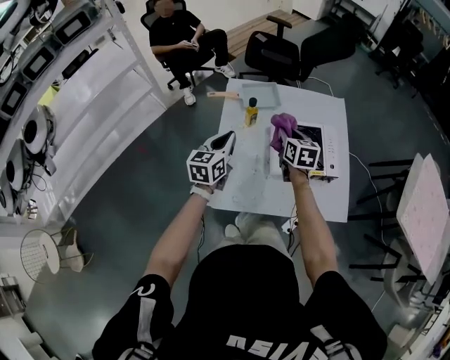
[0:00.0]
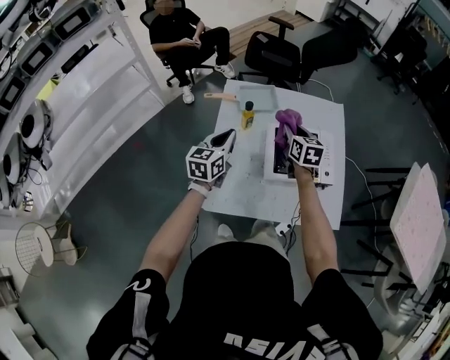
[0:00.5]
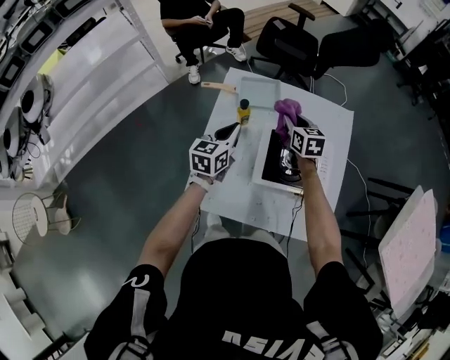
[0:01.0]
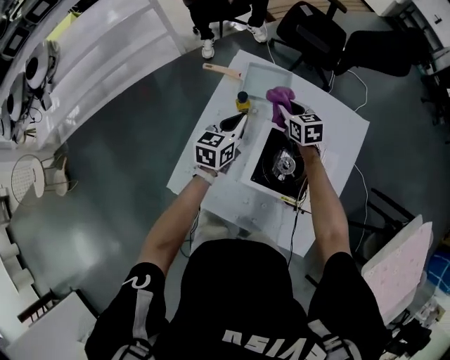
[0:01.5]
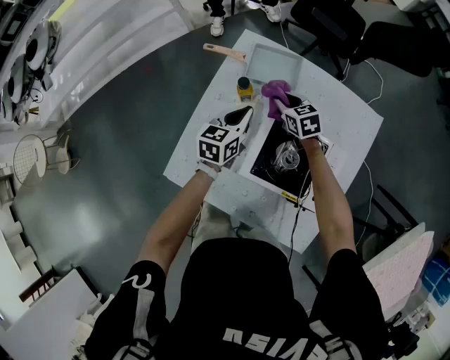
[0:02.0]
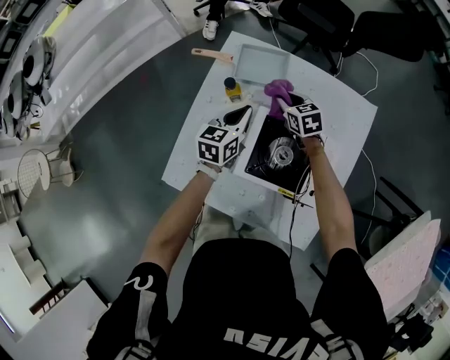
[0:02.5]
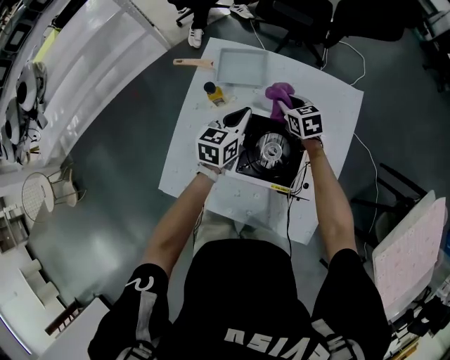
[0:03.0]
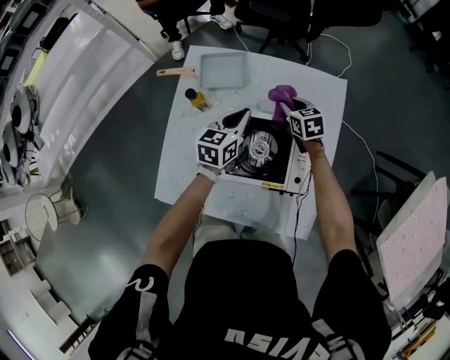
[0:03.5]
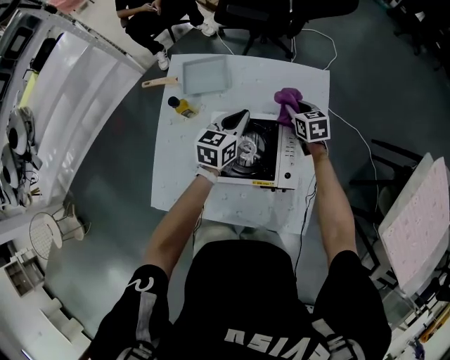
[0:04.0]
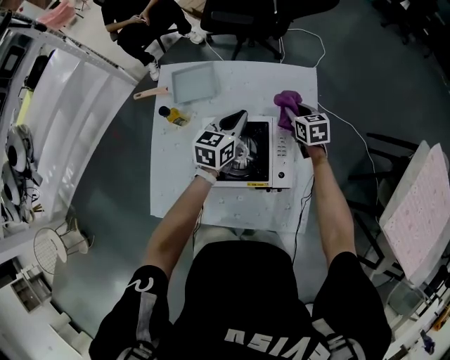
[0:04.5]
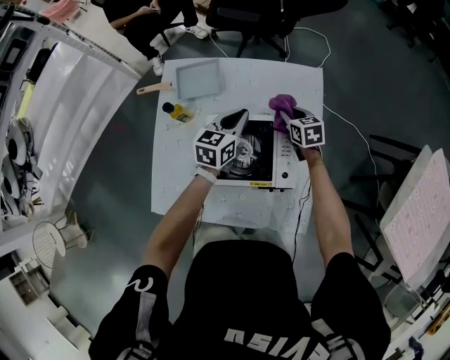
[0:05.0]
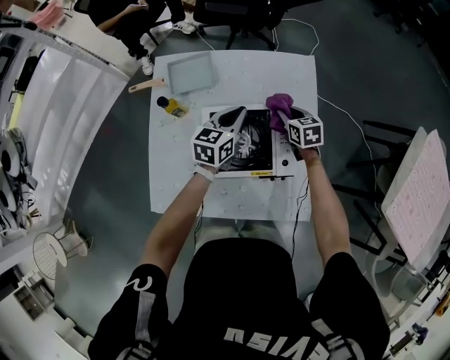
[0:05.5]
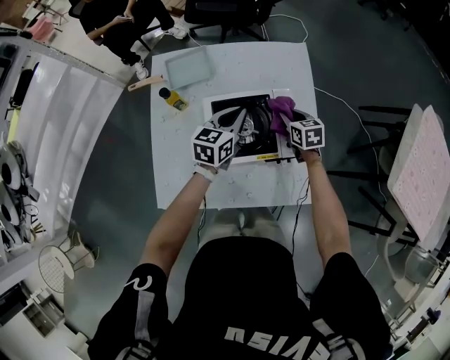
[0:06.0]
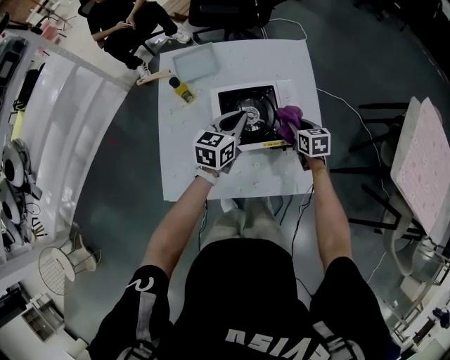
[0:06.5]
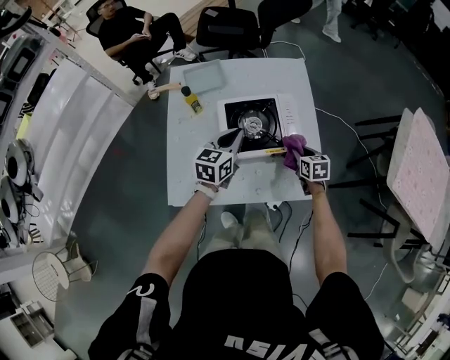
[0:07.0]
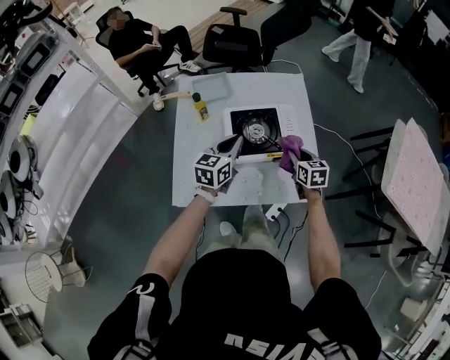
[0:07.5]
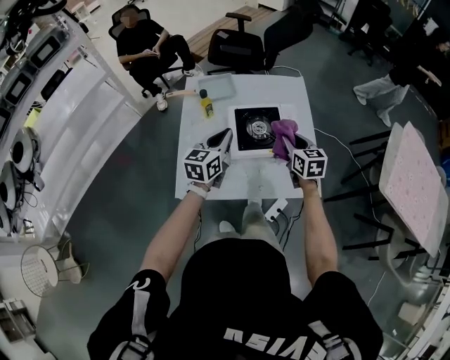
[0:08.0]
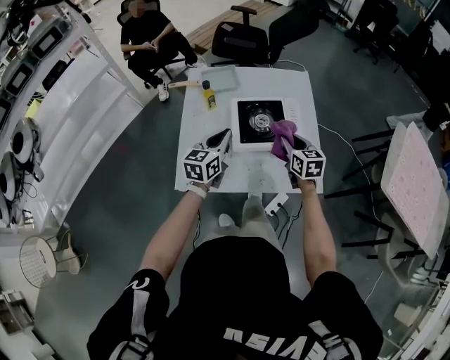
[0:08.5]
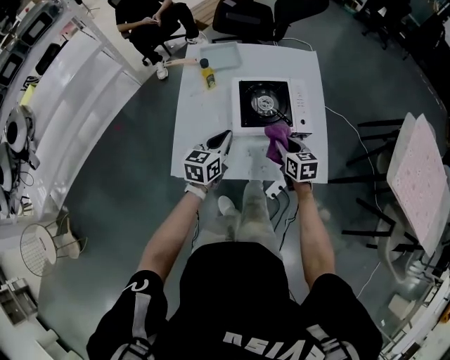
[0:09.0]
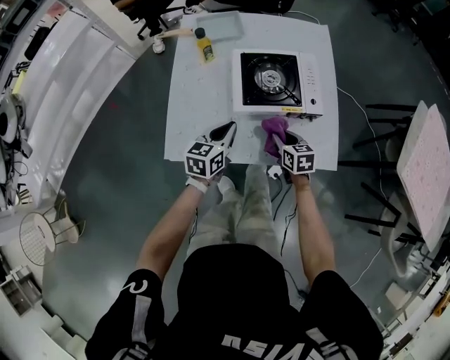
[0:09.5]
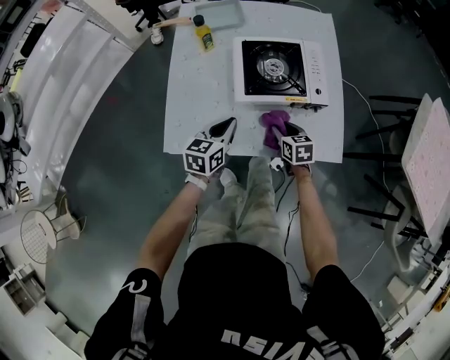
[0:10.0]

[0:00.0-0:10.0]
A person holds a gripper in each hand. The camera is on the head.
0:00.0 to 0:02.0: The right gripper shifts by roughly 25 cm, and turns by approximately 50 degrees. Meanwhile the left gripper shifts by roughly 25 cm.
0:02.0 to 0:04.0: The two grippers go approximately 25 cm to the right. The right gripper turns by approximately 30 degrees.
0:04.0 to 0:06.0: The left gripper heads backward, covering some 5 cm, while the right gripper moves backward, roughly 15 cm.
0:06.0 to 0:08.0: The right gripper travels backward and upward by about 25 cm. The left gripper heads backward, upward and to the left, covering about 25 cm.
0:08.0 to 0:10.0: Both grippers move downward, approximately 25 cm. The right gripper rotates approximately 20 degrees.

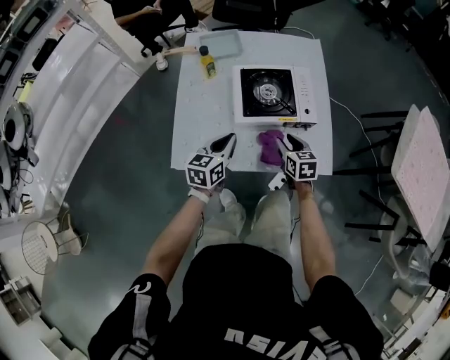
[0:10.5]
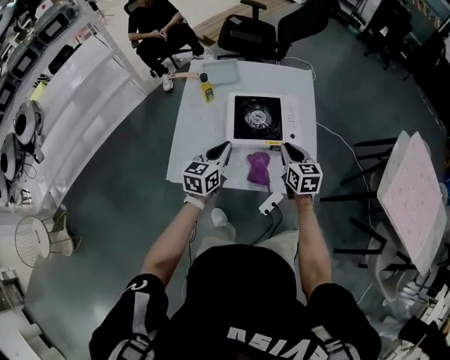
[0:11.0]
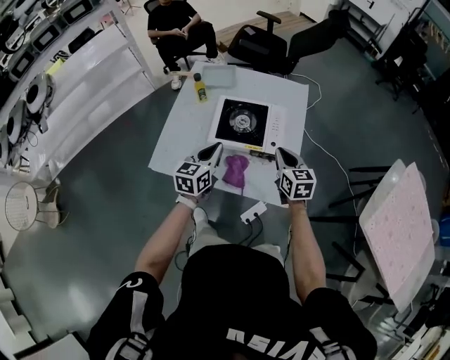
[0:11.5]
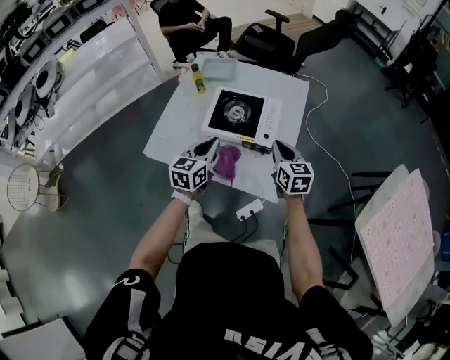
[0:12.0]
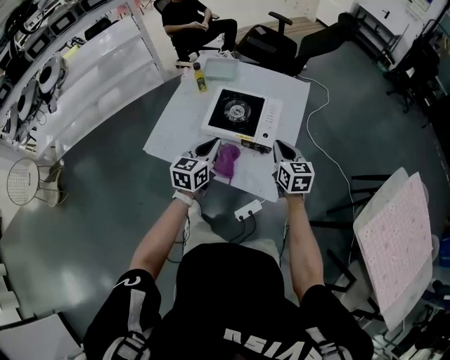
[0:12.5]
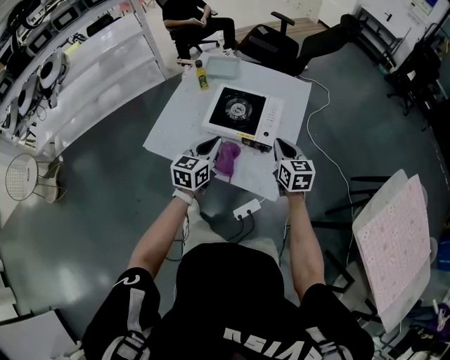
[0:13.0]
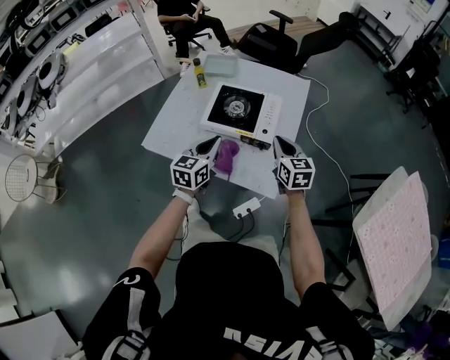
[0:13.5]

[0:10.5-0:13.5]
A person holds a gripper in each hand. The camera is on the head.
0:10.5 to 0:12.0: The grippers both shift to the right and upward by approximately 20 cm. The right gripper rotates about 20 degrees, and closes; the left gripper rotates about 20 degrees.
0:12.0 to 0:13.5: The grippers make only small movements.

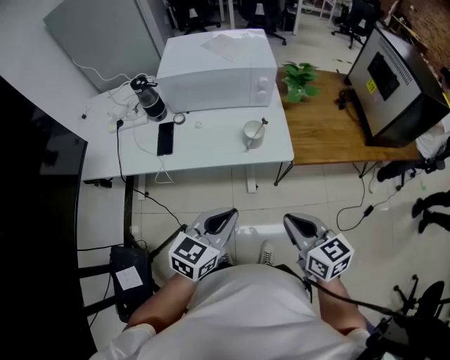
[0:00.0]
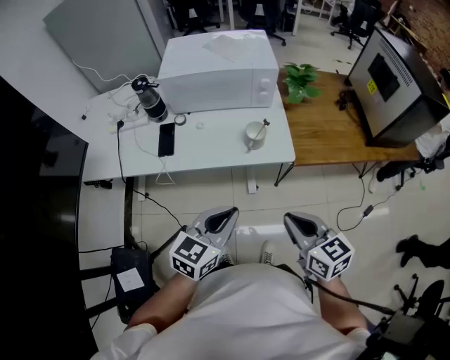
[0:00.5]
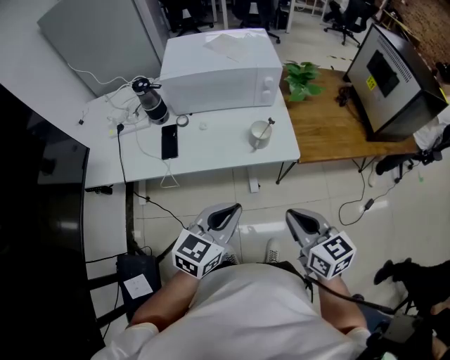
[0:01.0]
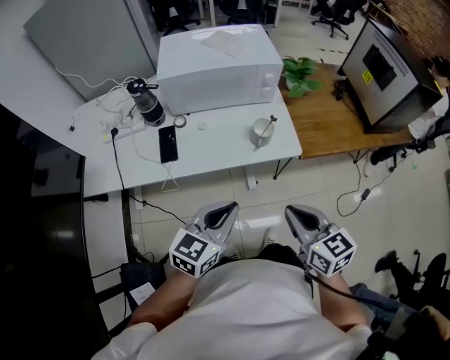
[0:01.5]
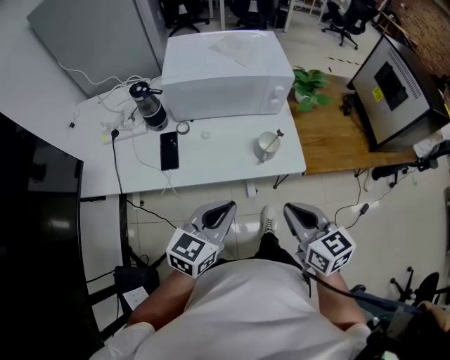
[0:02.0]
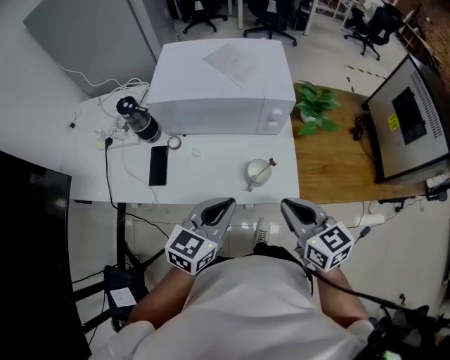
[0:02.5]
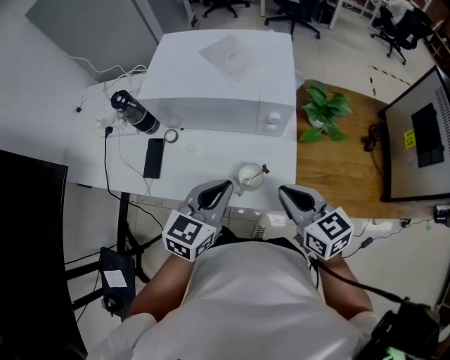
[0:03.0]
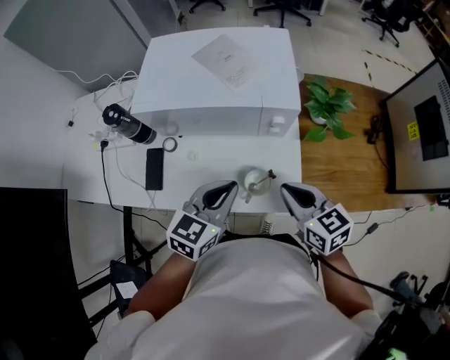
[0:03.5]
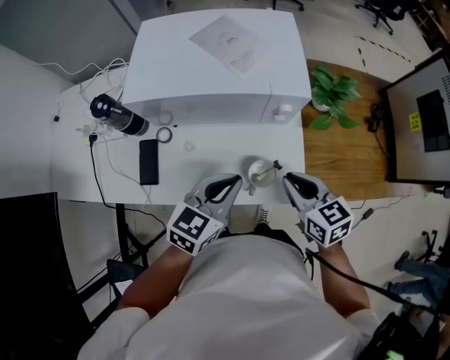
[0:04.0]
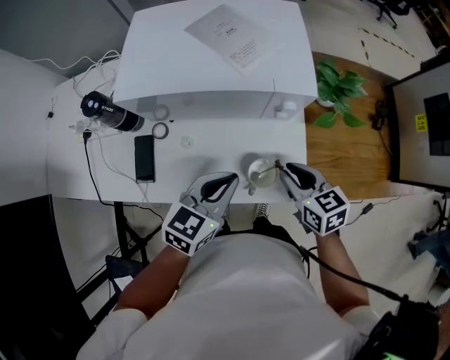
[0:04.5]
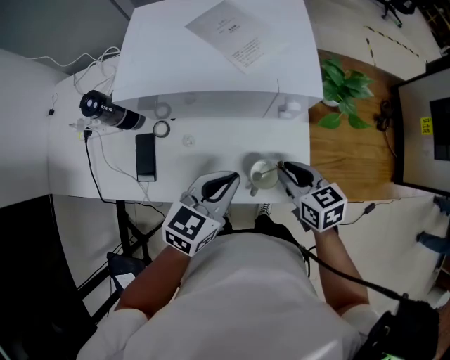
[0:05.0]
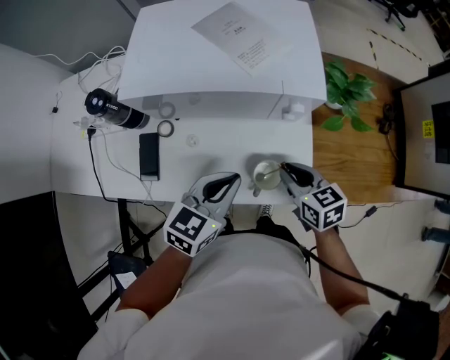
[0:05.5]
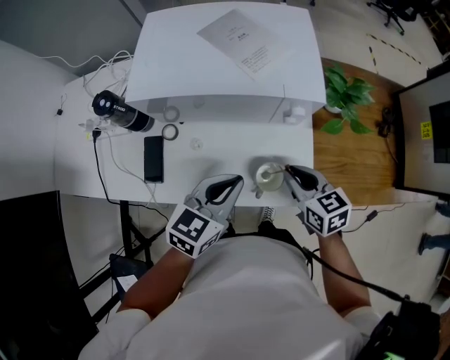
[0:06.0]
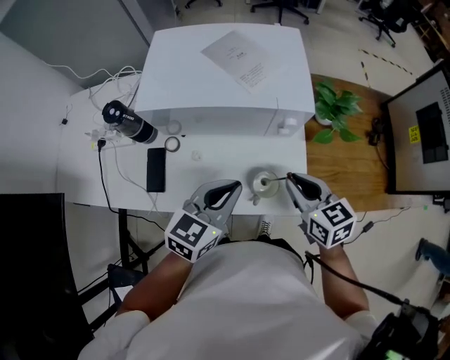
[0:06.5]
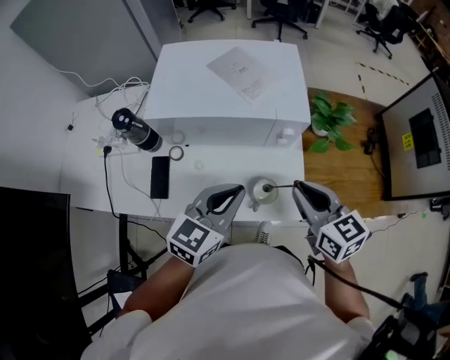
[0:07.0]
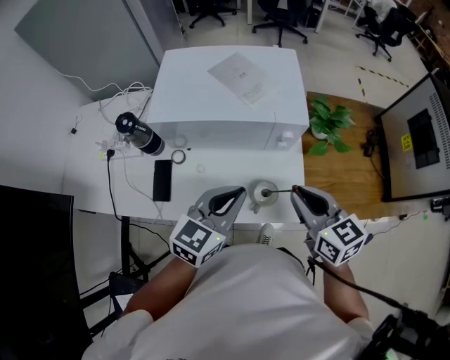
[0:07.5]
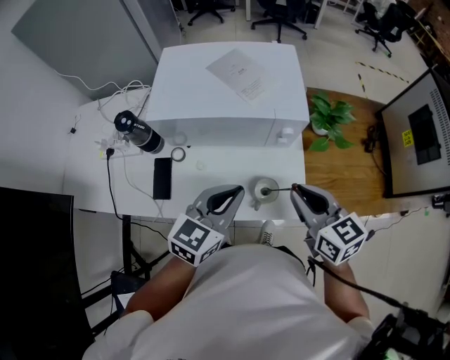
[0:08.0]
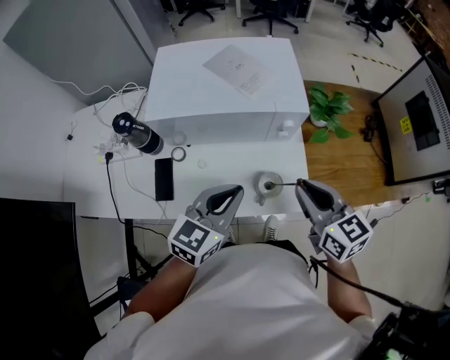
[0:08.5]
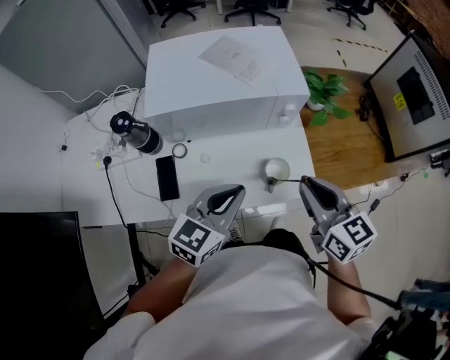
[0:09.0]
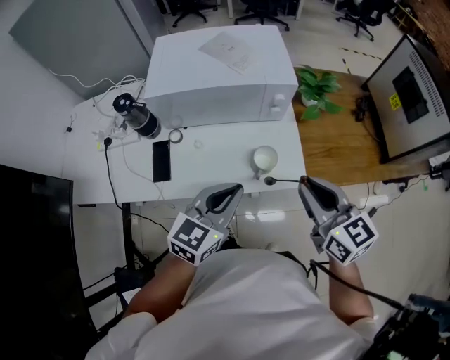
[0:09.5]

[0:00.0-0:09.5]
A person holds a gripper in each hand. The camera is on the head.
0:00.0 to 0:02.0: The right gripper travels forward and to the left by some 10 cm, while the left gripper goes about 10 cm to the left and forward.
0:02.0 to 0:04.0: The right gripper moves forward, approximately 25 cm, while the left gripper heads forward and to the right, covering roughly 25 cm.
0:04.0 to 0:05.5: The right gripper is displaced downward by approximately 5 cm.
0:05.5 to 0:07.5: The right gripper heads upward, covering roughly 15 cm. The left gripper shifts some 10 cm upward.
0:07.5 to 0:09.5: Both grippers move backward, approximately 10 cm.

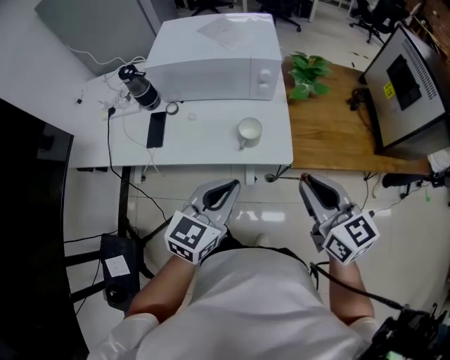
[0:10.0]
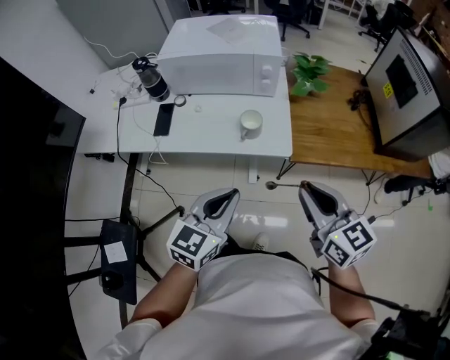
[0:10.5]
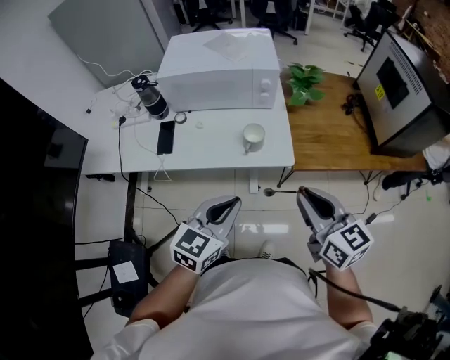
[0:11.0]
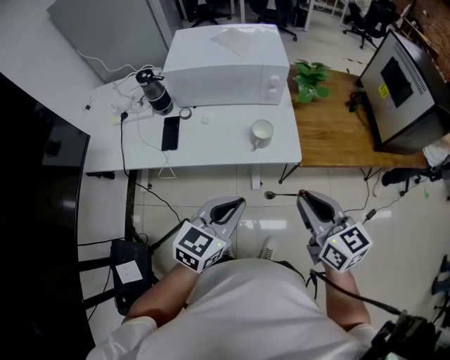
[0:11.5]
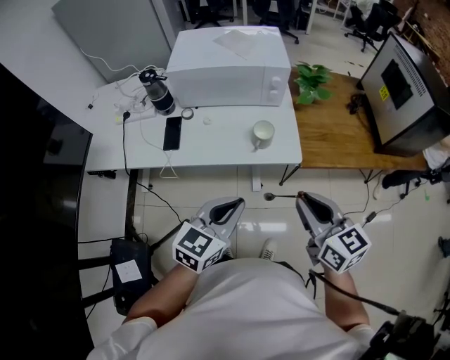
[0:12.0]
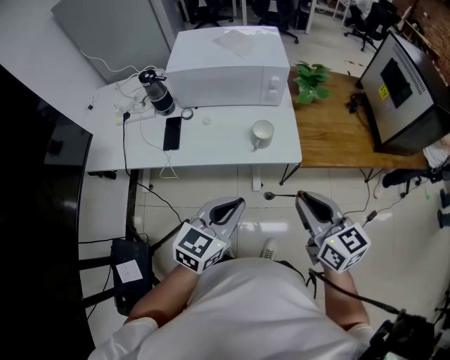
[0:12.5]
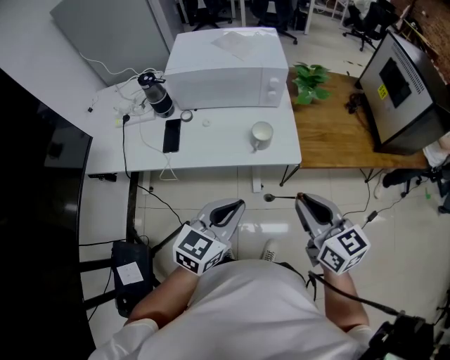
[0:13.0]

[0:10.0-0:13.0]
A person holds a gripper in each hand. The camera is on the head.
0:10.0 to 0:11.5: The right gripper heads backward and to the left, covering approximately 10 cm. The left gripper goes about 5 cm backward.
0:11.5 to 0:13.0: Neither gripper changes place.
